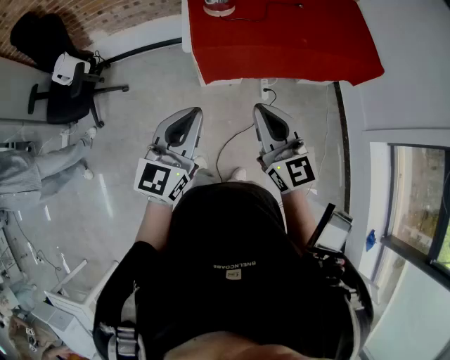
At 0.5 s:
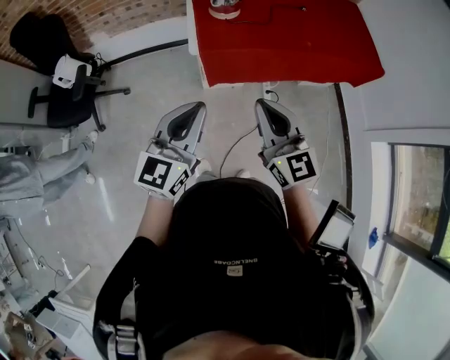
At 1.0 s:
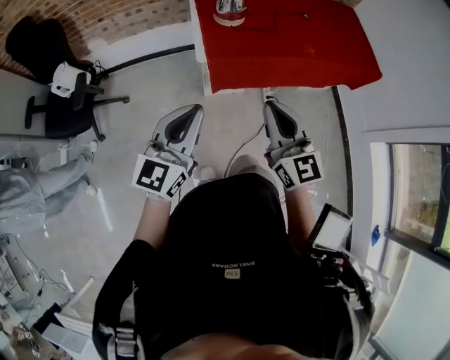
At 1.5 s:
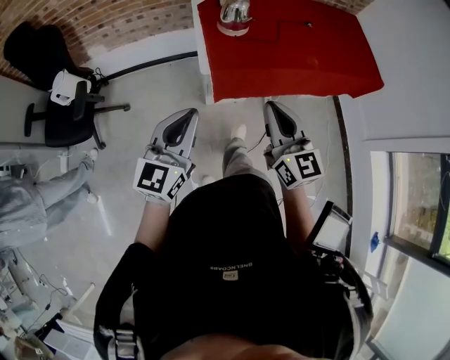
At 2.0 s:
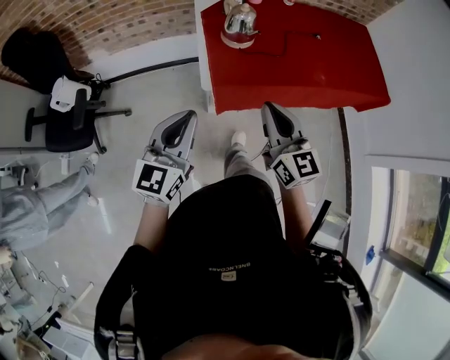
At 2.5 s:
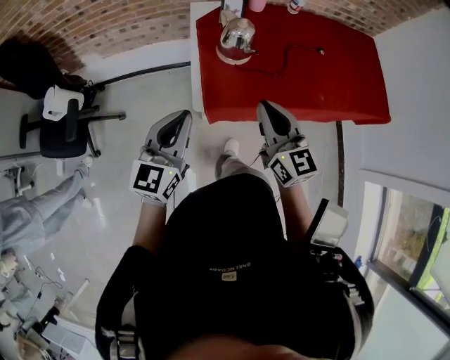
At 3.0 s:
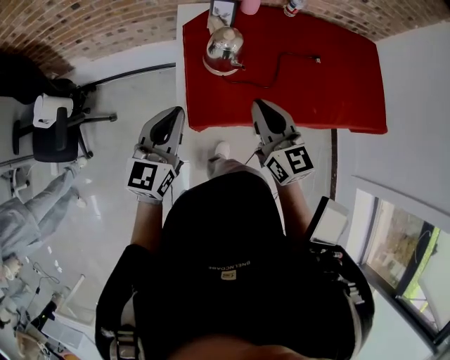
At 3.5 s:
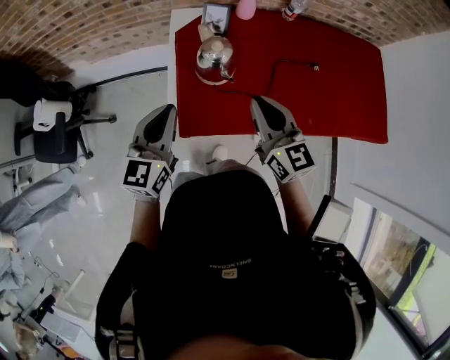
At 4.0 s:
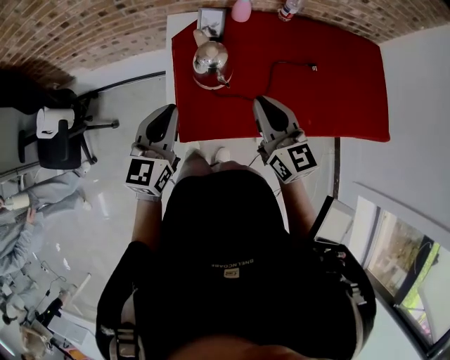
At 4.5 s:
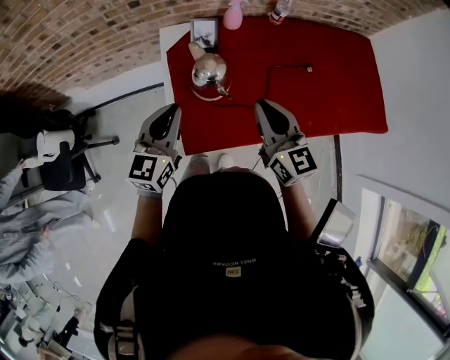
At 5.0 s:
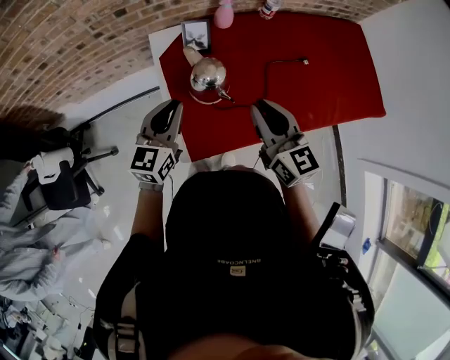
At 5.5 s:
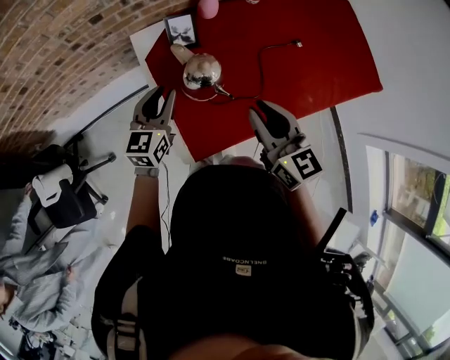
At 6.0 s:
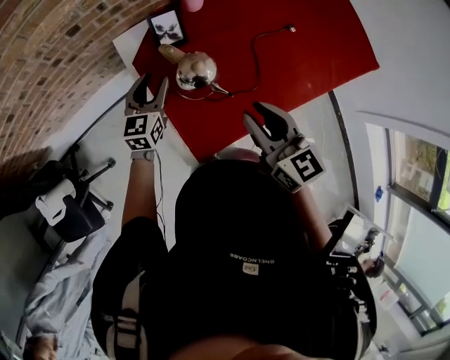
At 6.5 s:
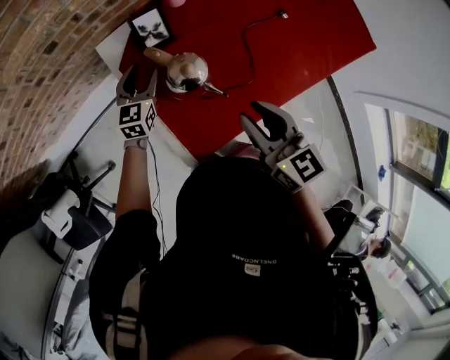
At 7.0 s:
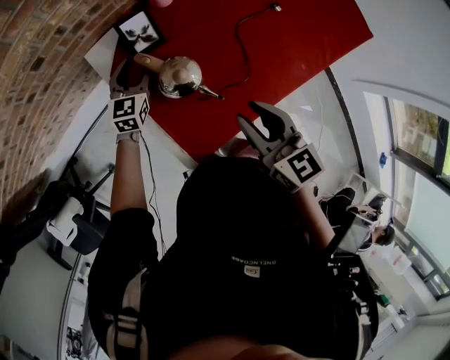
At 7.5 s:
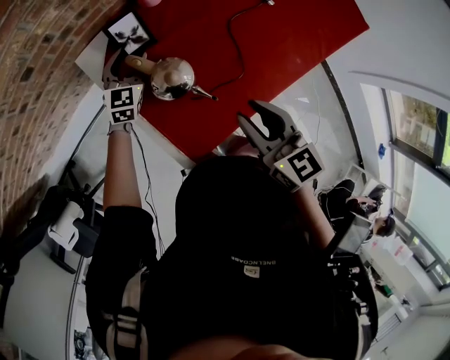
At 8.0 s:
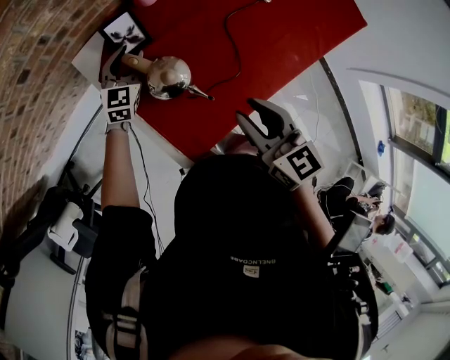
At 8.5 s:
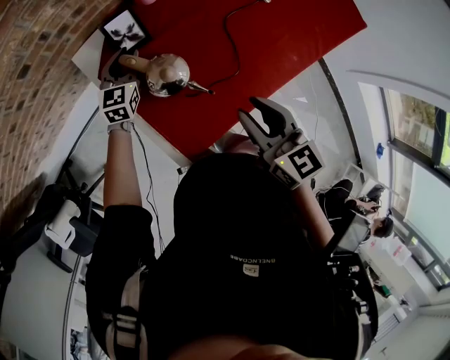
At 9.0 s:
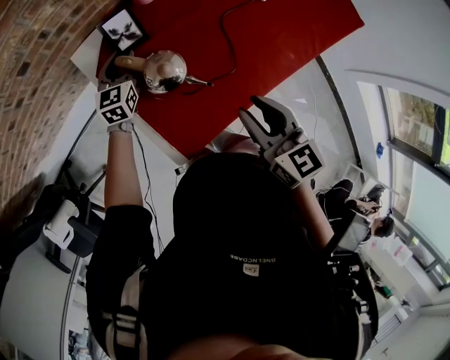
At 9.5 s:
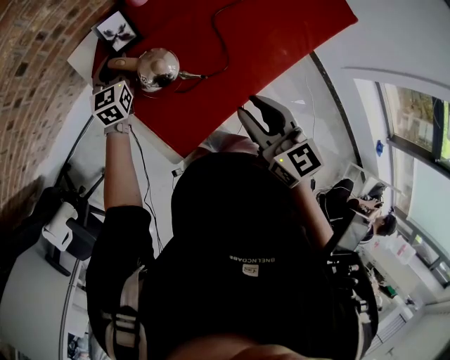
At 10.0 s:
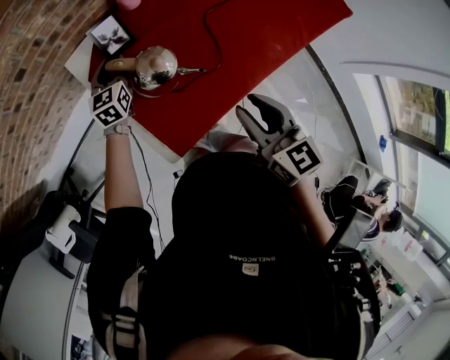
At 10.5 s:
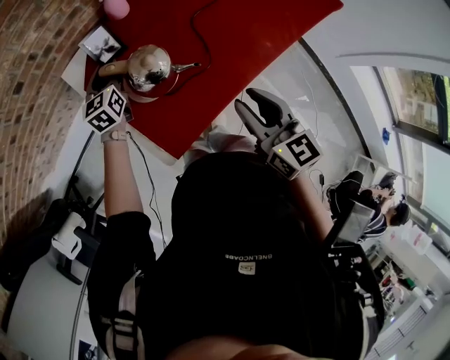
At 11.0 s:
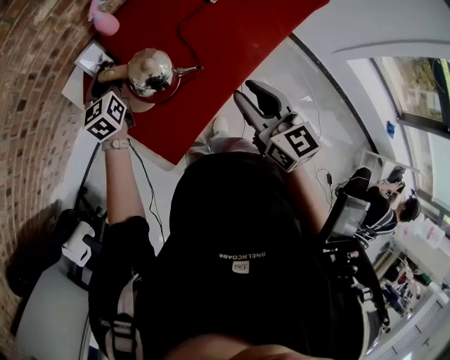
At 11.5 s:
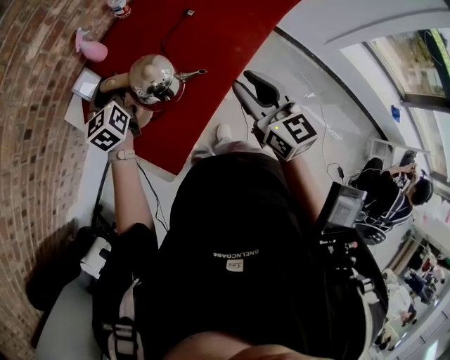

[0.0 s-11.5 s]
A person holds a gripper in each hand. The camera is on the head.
0.0 to 2.0 s: Both grippers travel together forward and to the left, about 20 cm.
2.0 to 4.0 s: The left gripper moves forward, about 25 cm, while the right gripper goes roughly 30 cm forward and to the right.
4.0 to 6.0 s: The right gripper moves to the left, roughly 5 cm, changes its angle by approximately 20 degrees, and opens its fingers; the left gripper shifts approximately 25 cm forward and downward, and opens up.
6.0 to 7.5 s: The left gripper is displaced forward and downward by some 15 cm, and turns by some 20 degrees.
7.5 to 9.5 s: The left gripper closes.
9.5 to 11.5 s: The right gripper shifts about 15 cm to the right. The left gripper moves to the right and upward, about 20 cm.

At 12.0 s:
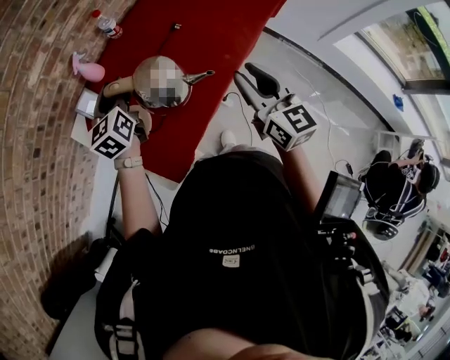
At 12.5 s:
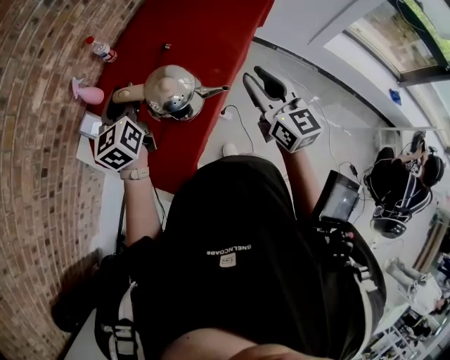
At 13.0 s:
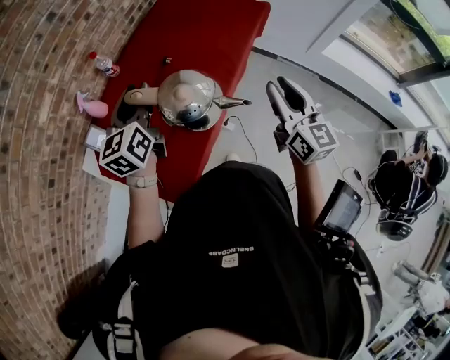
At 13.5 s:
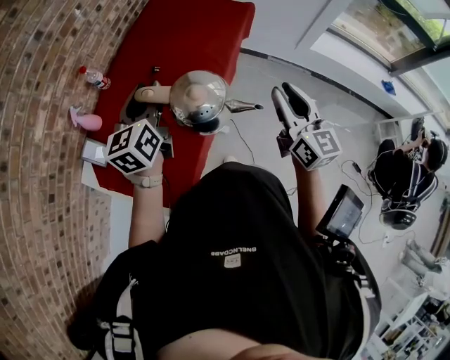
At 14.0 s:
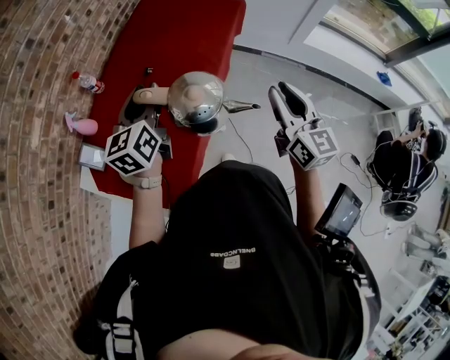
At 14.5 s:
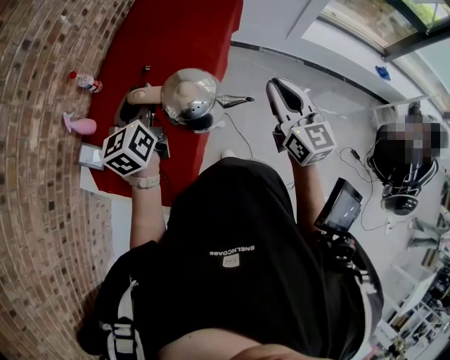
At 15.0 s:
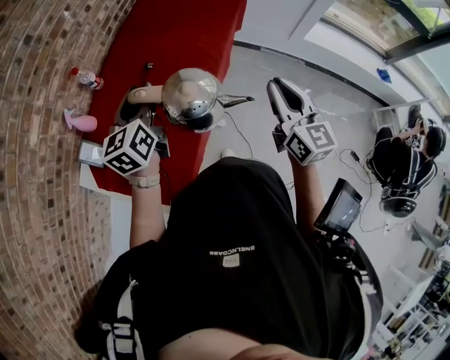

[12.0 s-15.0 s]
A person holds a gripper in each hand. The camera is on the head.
12.0 to 13.5 s: The right gripper moves to the right, about 15 cm, and rotates roughly 20 degrees. The left gripper travels to the right and upward by some 25 cm, and changes its angle by approximately 20 degrees.
13.5 to 15.0 s: The grippers make only small movements.

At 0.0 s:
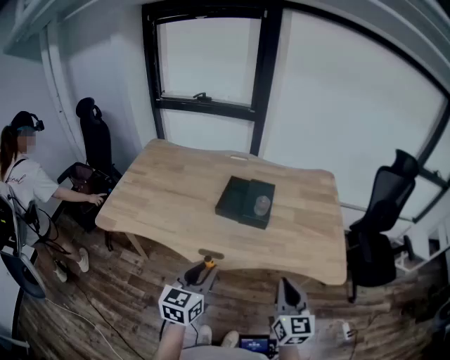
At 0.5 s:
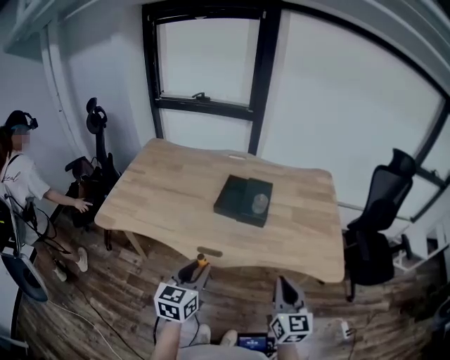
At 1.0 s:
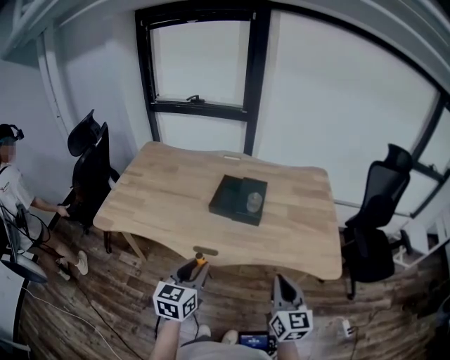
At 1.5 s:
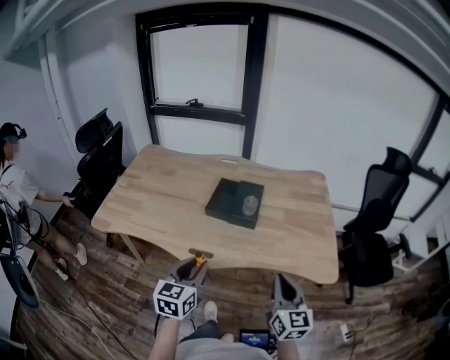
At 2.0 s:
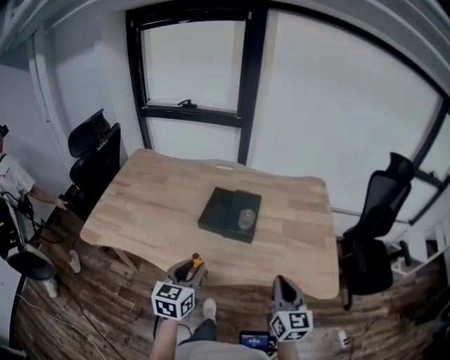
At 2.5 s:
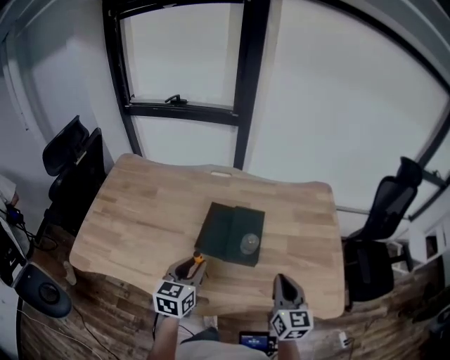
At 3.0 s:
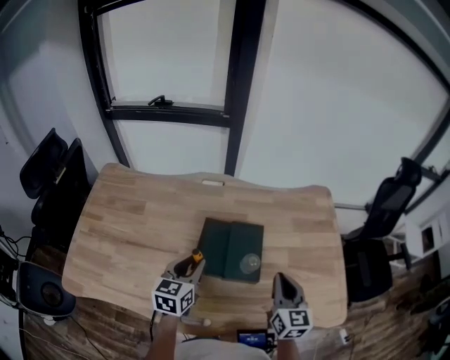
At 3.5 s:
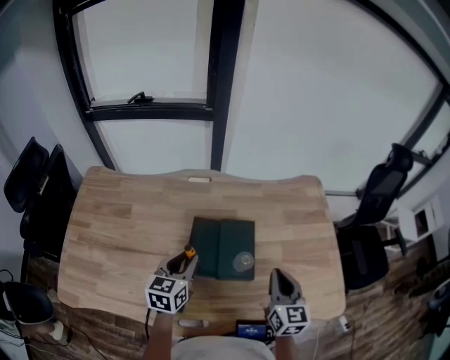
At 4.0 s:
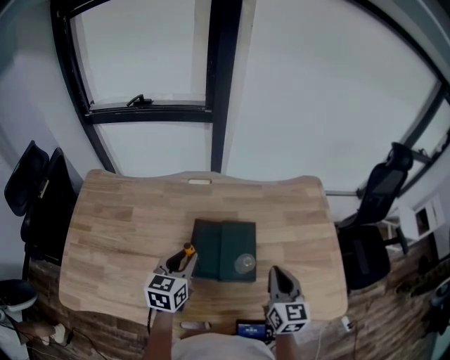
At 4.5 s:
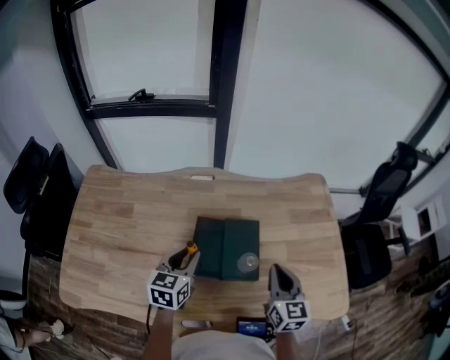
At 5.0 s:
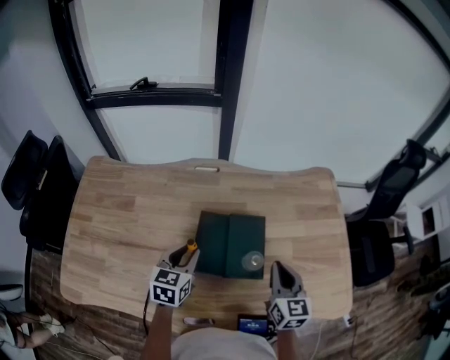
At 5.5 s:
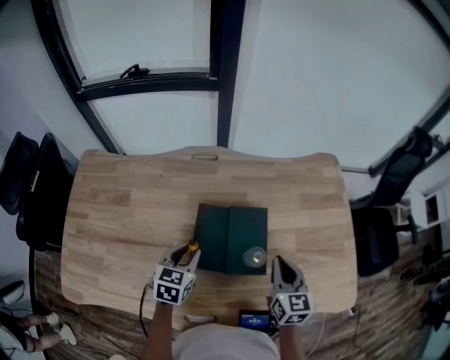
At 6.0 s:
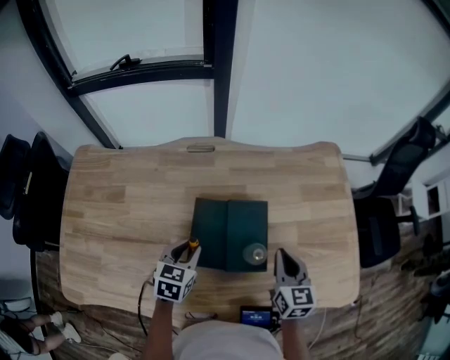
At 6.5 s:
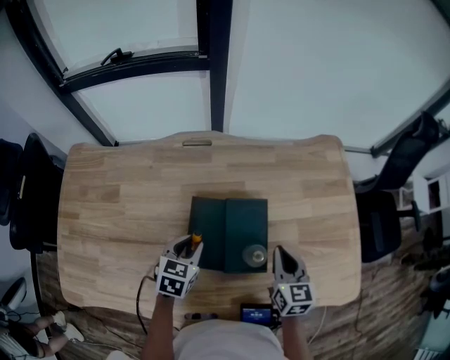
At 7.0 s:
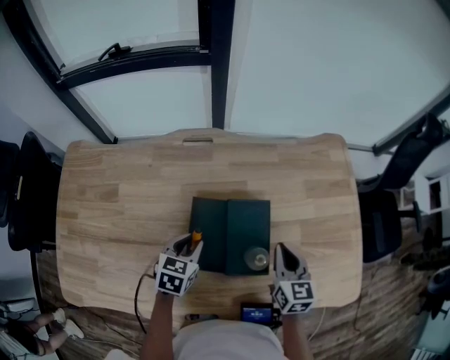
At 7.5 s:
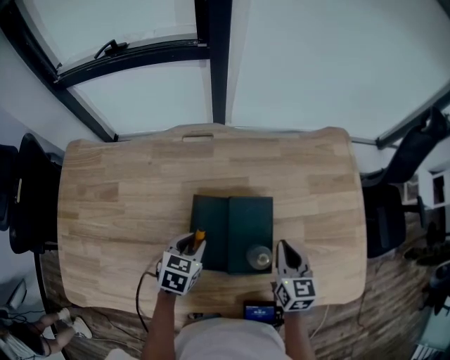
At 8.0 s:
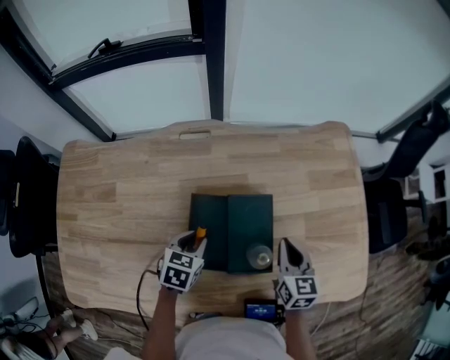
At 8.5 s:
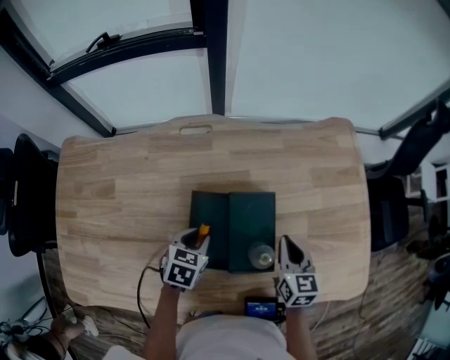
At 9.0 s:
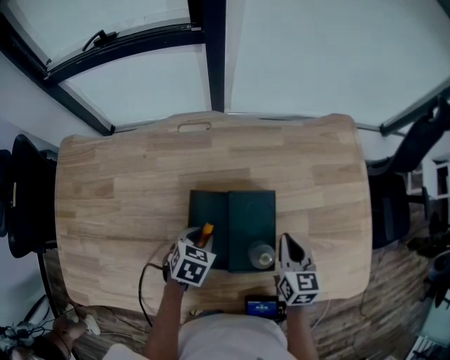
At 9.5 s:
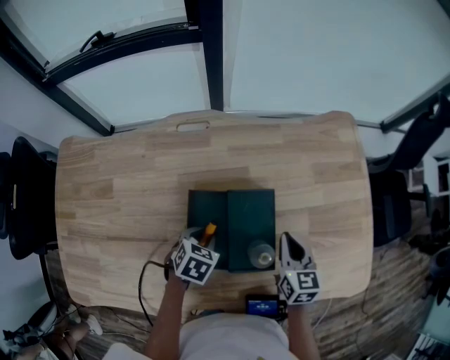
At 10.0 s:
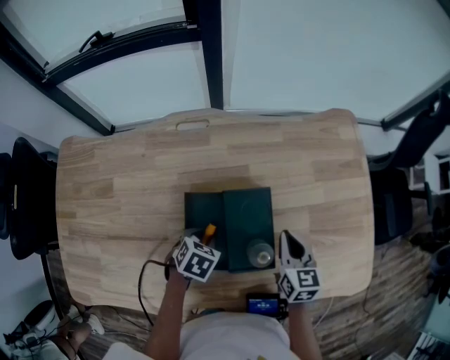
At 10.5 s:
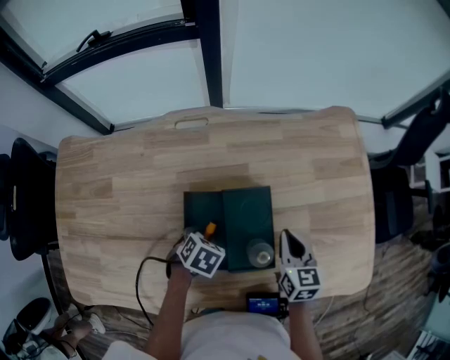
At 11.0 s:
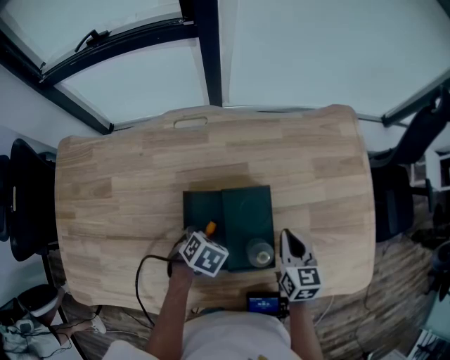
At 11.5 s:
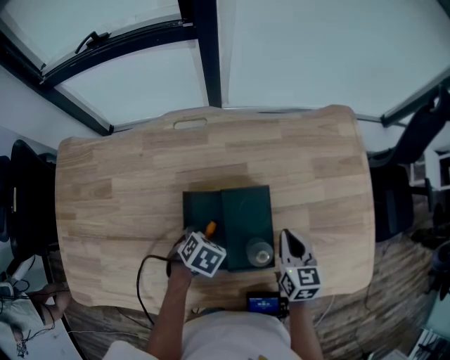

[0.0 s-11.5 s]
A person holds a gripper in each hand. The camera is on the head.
0.0 to 2.0 s: The grippers both shift forward by roughly 10 cm.
2.0 to 4.0 s: The grippers both shift forward by approximately 25 cm.
4.0 to 6.0 s: The two grippers go approximately 10 cm downward. The left gripper changes its angle by approximately 20 degrees.
6.0 to 7.5 s: The left gripper ends up some 5 cm from where it was; the right gripper moves approximately 5 cm.
7.5 to 9.5 s: The left gripper shifts by approximately 5 cm.
9.5 to 11.5 s: The grippers stay close to where they were, moving slightly.

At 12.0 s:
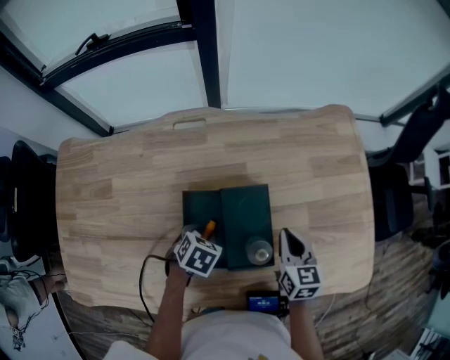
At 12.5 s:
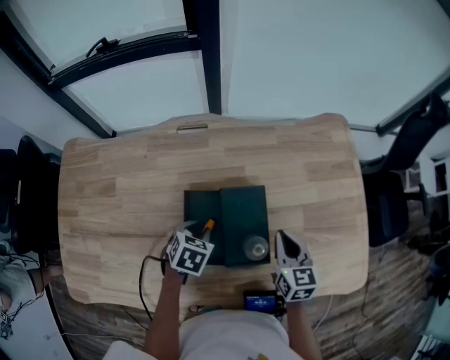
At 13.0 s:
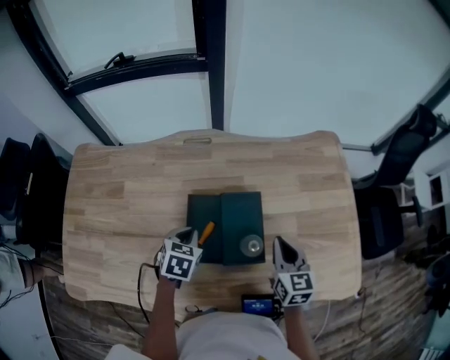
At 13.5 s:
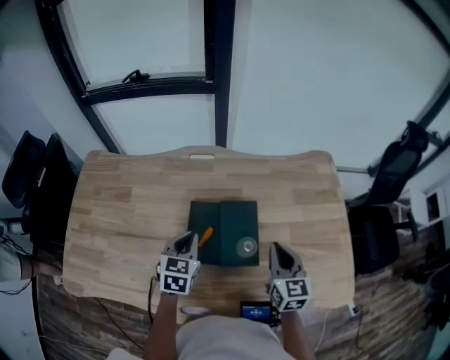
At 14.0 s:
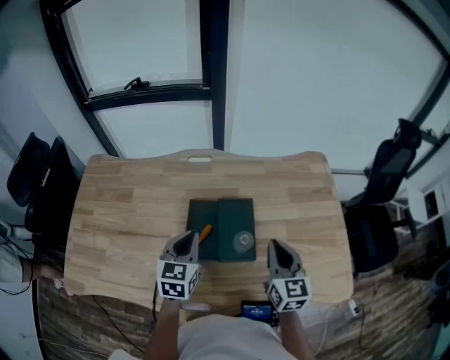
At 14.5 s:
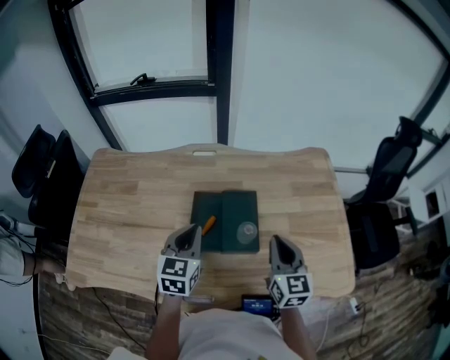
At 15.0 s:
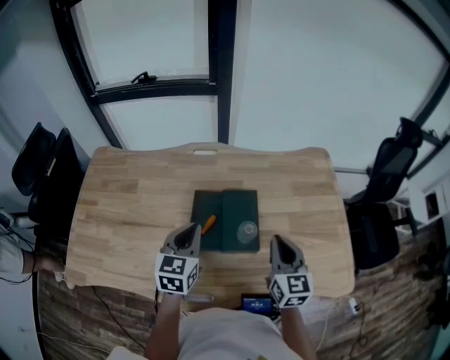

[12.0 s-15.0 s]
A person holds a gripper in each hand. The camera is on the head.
12.0 to 13.5 s: Both grippers move upward, some 15 cm. The left gripper tilts its fingers approximately 40 degrees upward, and closes its fingers.
13.5 to 15.0 s: The right gripper changes place by roughly 5 cm. The left gripper travels upward by some 5 cm.
